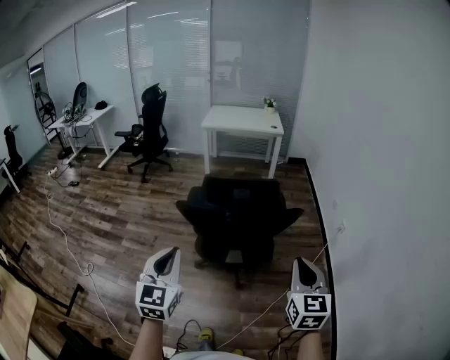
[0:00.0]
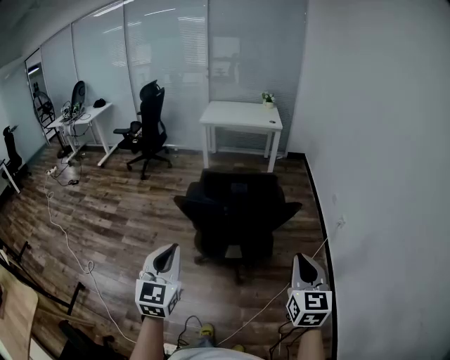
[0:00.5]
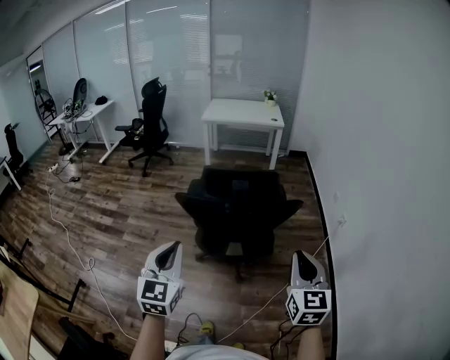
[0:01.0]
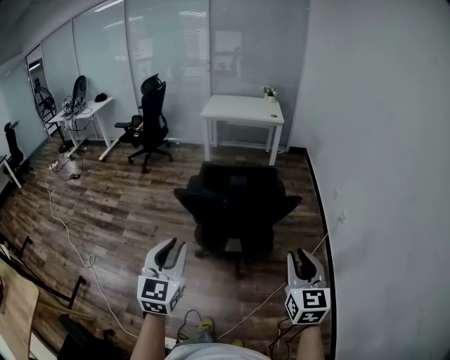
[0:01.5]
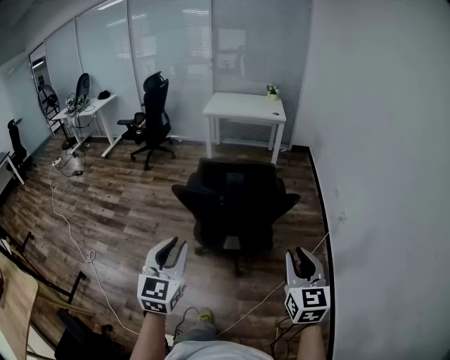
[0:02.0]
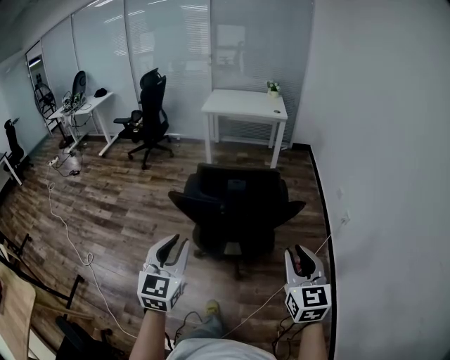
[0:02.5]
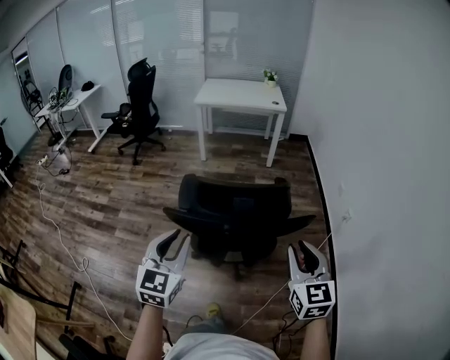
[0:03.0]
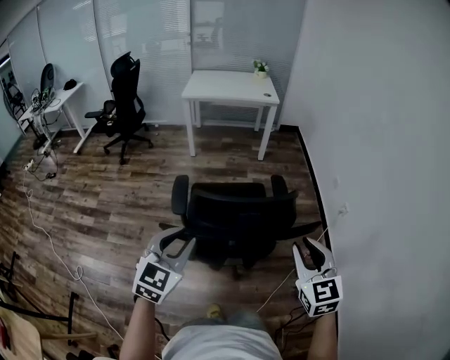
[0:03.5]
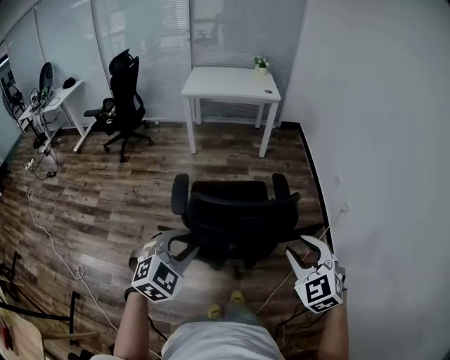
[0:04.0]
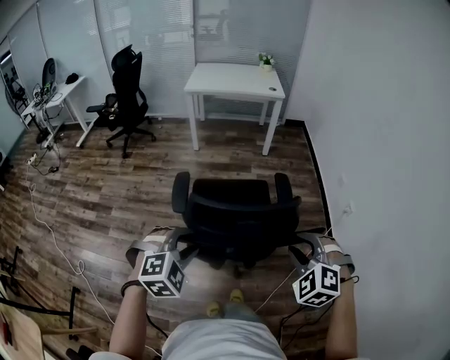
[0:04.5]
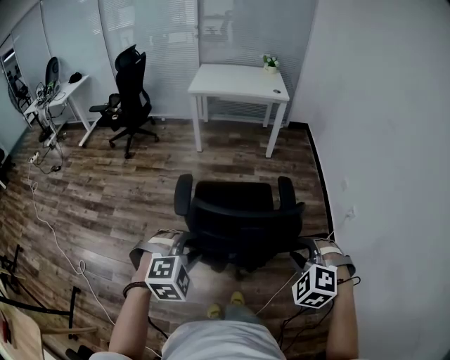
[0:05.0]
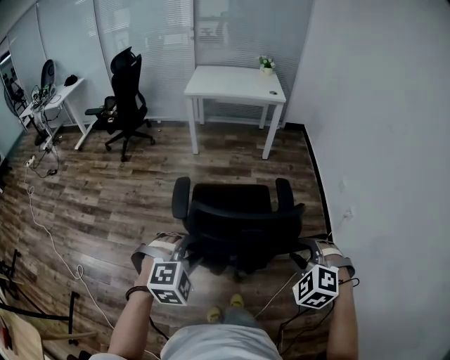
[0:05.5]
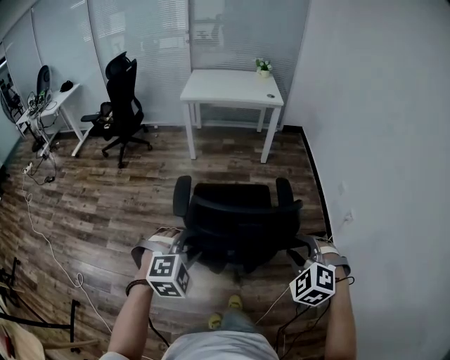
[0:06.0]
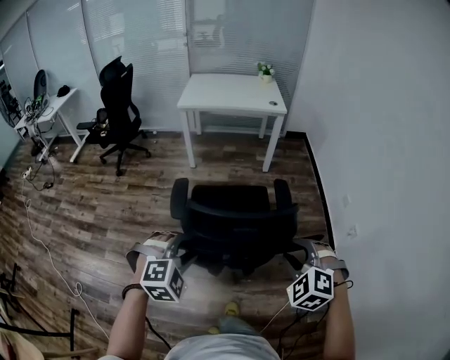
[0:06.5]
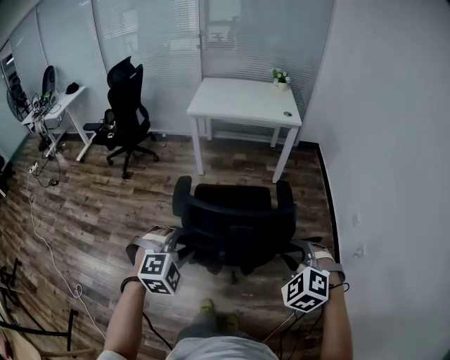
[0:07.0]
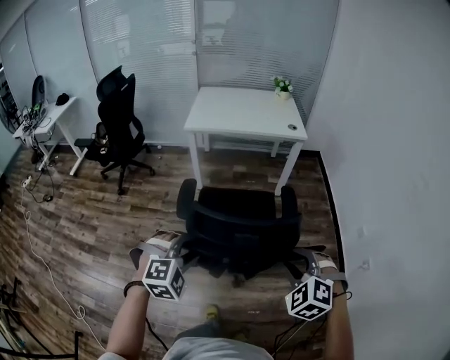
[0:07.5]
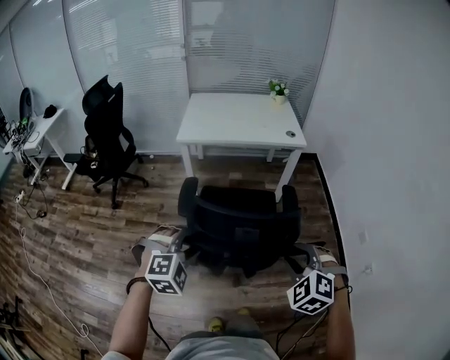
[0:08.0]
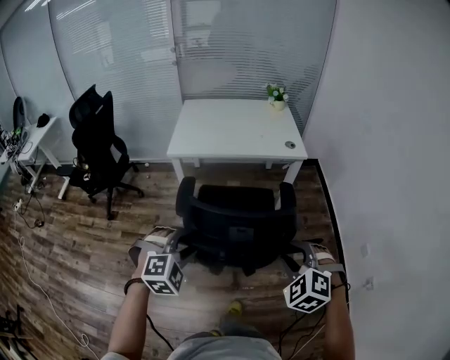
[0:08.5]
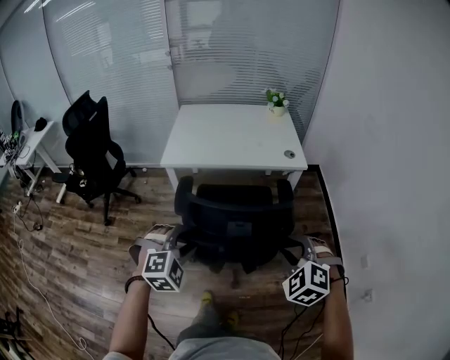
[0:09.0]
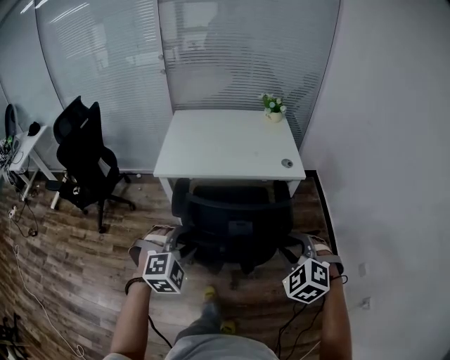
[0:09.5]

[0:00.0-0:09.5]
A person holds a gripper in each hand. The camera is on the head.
0.0 to 2.0 s: The left gripper moves to the right, approximately 5 cm, and opens.
2.0 to 4.0 s: The grippers both shift forward by approximately 30 cm. The left gripper rotates some 50 degrees; the right gripper turns by roughly 40 degrees.
4.0 to 5.5 s: The right gripper shifts by approximately 5 cm, and swivels approximately 30 degrees. The left gripper moves about 5 cm, and swivels approximately 20 degrees.
5.5 to 7.5 s: Both grippers are carried forward, about 50 cm.
7.5 to 9.5 s: The pair of grippers is taken forward, roughly 50 cm.

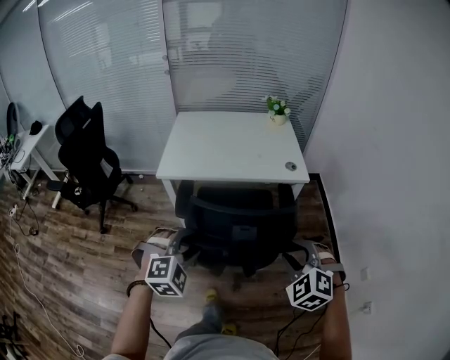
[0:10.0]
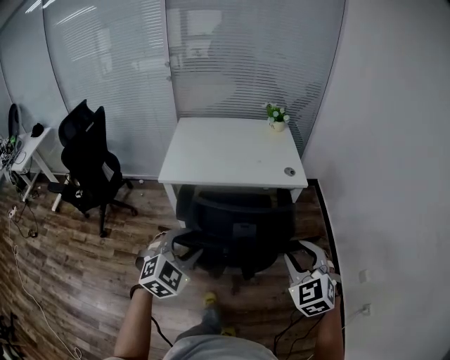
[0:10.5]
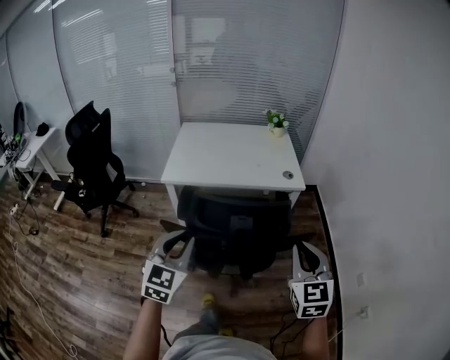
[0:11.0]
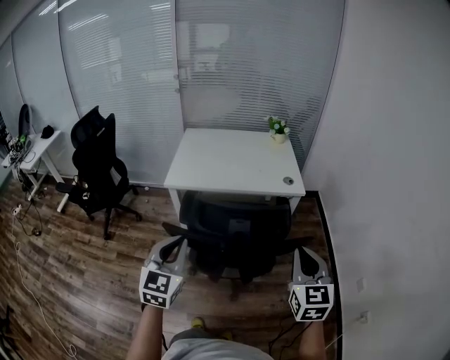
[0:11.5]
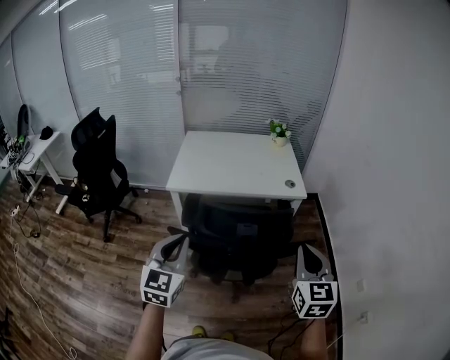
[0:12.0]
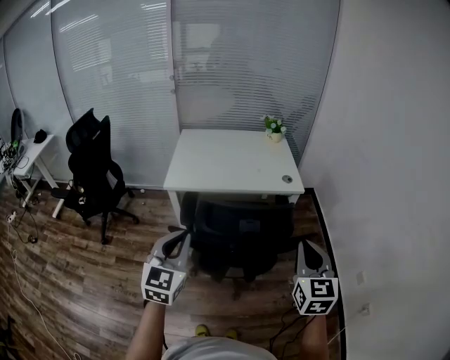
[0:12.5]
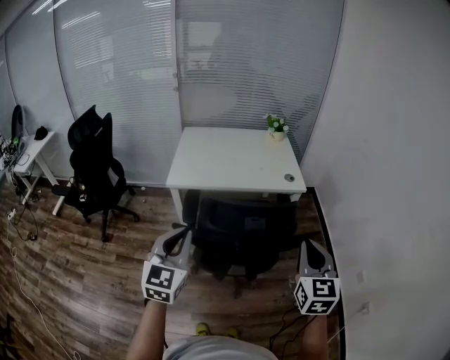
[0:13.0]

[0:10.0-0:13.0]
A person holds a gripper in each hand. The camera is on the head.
10.0 to 11.5 s: The two grippers go approximately 10 cm upward and backward. The left gripper rotates around the line of its fingers by roughly 50 degrees, counterclockwise from behind, and closes its fingers; the right gripper twists approximately 50 degrees clockwise, seen from behind, and closes its fingers.
11.5 to 13.0 s: The left gripper moves approximately 5 cm.

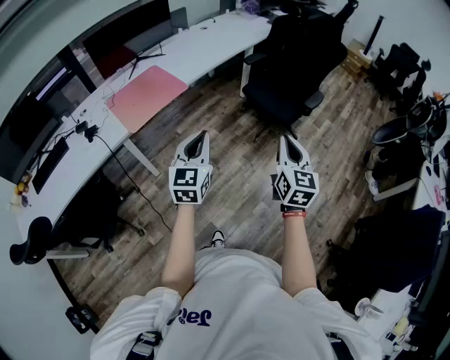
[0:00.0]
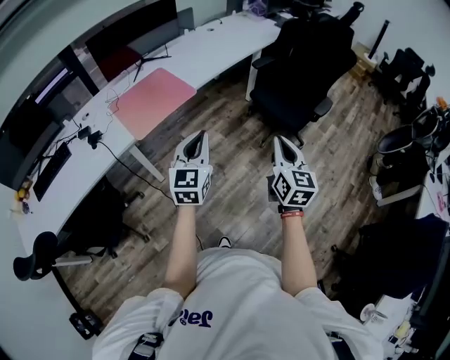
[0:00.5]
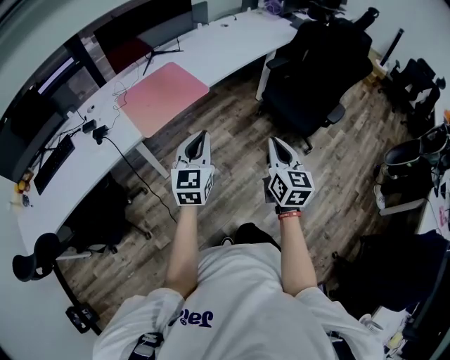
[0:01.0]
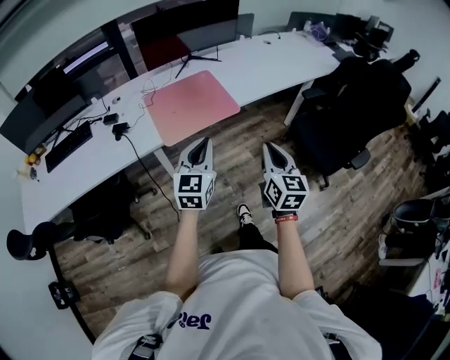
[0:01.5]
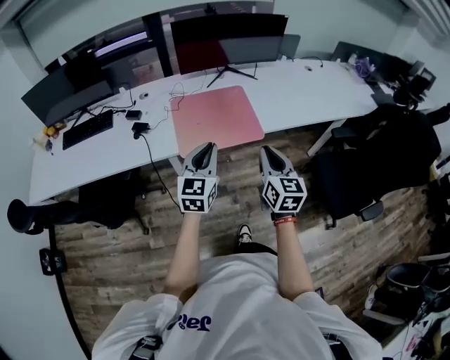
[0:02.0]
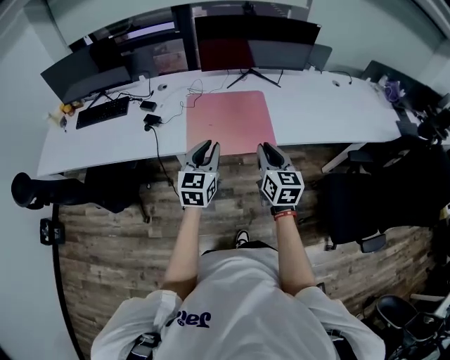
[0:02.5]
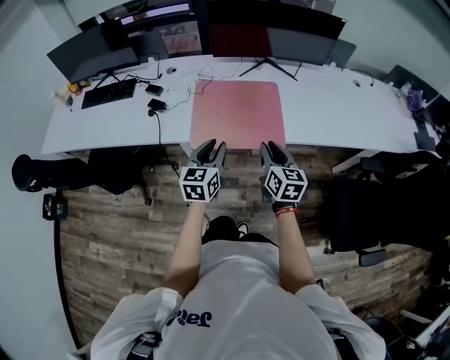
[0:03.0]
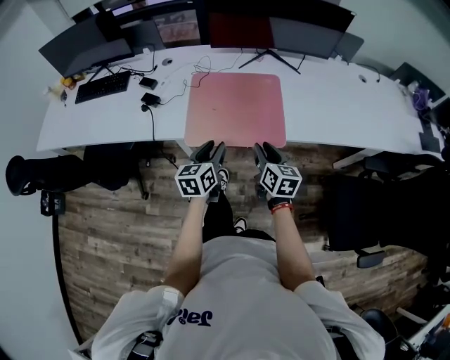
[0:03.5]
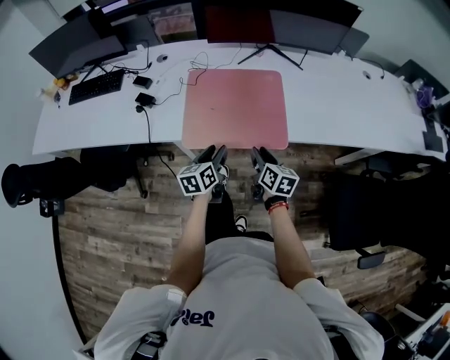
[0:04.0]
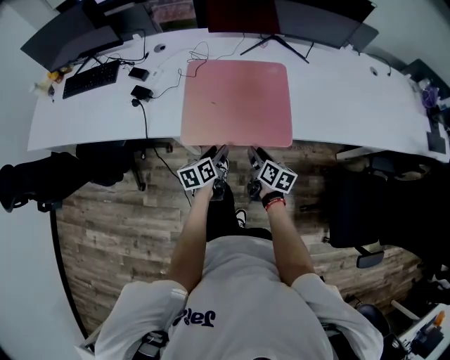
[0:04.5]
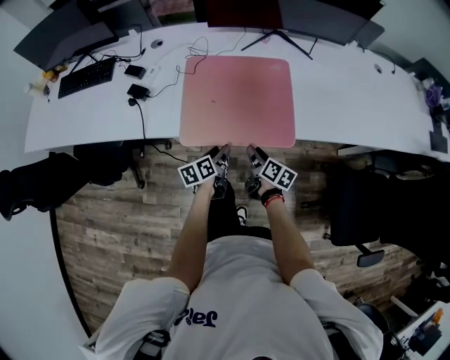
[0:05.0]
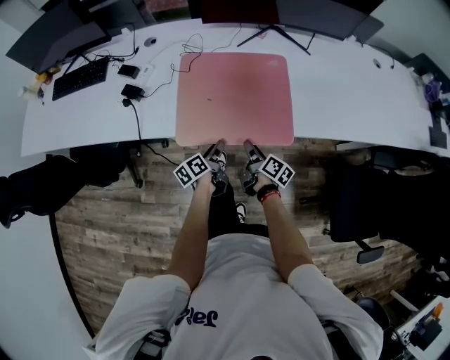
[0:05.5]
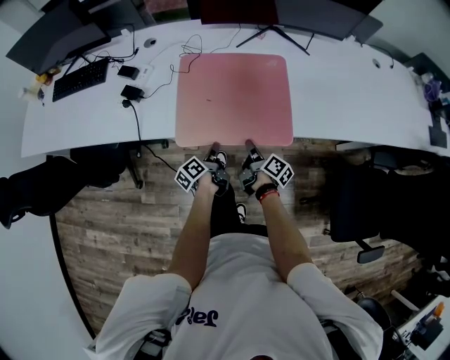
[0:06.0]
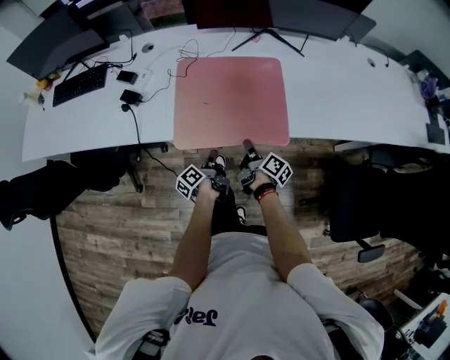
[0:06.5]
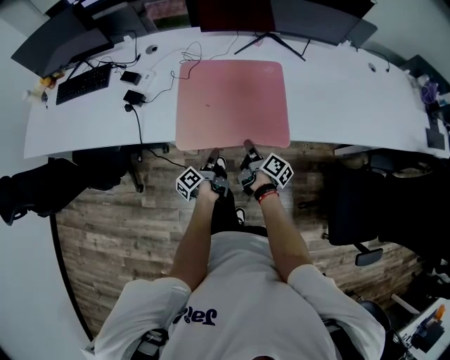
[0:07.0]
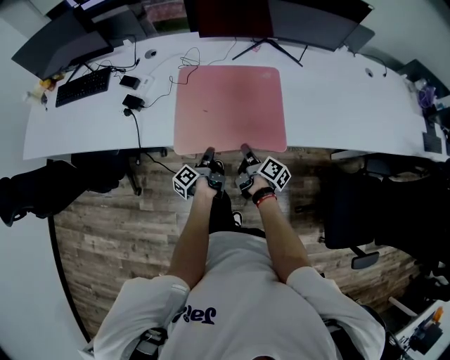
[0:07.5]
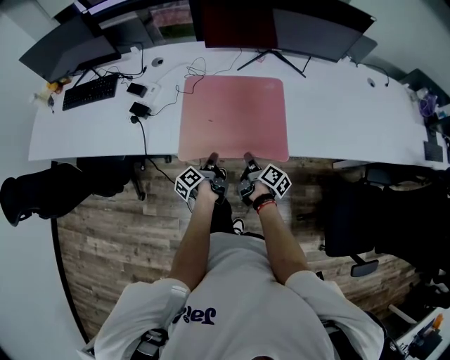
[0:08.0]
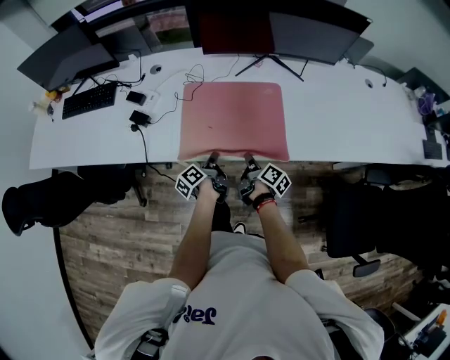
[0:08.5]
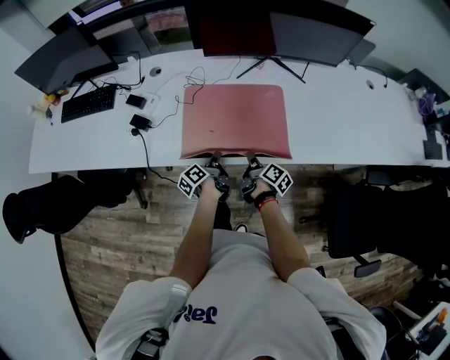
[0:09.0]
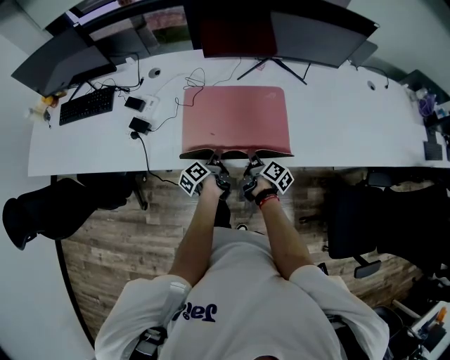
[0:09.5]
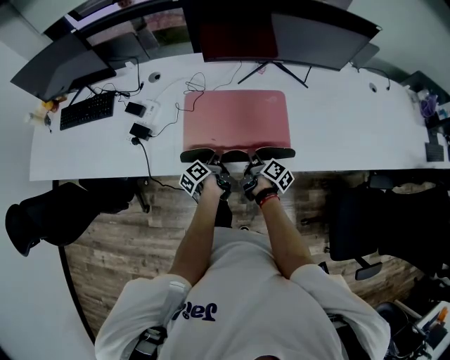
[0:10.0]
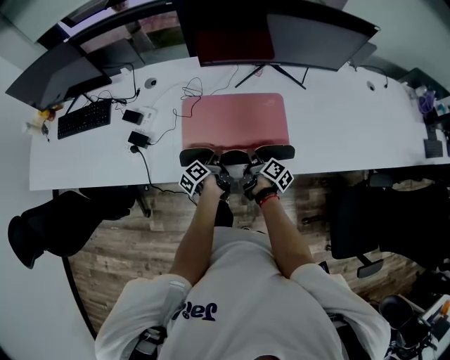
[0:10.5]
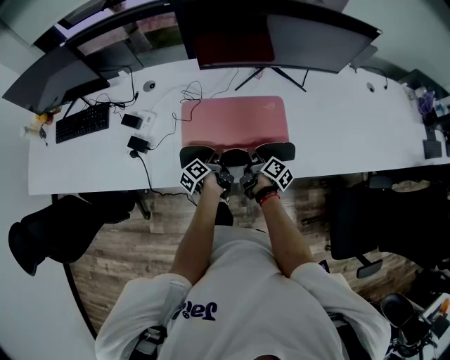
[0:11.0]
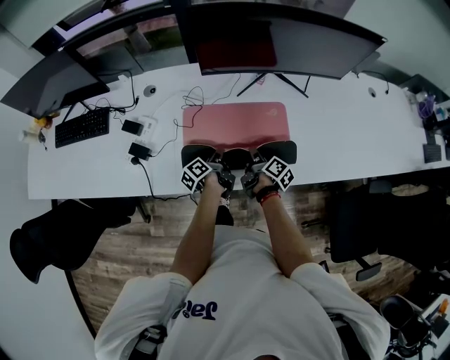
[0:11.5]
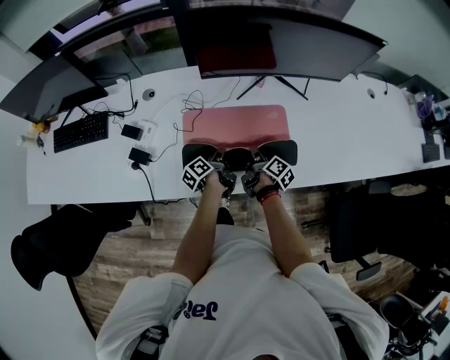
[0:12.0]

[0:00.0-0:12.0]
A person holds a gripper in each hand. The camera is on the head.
0.0 to 2.0 s: The left gripper shifts by about 35 cm, and swivels roughly 30 degrees. The right gripper ends up some 50 cm from where it was, and rotates about 40 degrees.
2.0 to 4.0 s: Both grippers move downward and forward, approximately 30 cm. The right gripper turns by roughly 30 degrees, and opens up. Meanwhile the left gripper swivels some 40 degrees, and opens.
4.0 to 6.0 s: The right gripper heads downward and forward, covering approximately 15 cm, and twists about 40 degrees clockwise, seen from behind, while the left gripper heads downward, covering roughly 15 cm, twists some 50 degrees counterclockwise, seen from behind, and closes its fingers.
6.0 to 8.0 s: The right gripper changes place by some 5 cm, while the left gripper travels upward by roughly 5 cm.
8.0 to 10.0 s: The two grippers go roughly 10 cm forward.
10.0 to 12.0 s: Both grippers move forward, about 10 cm.

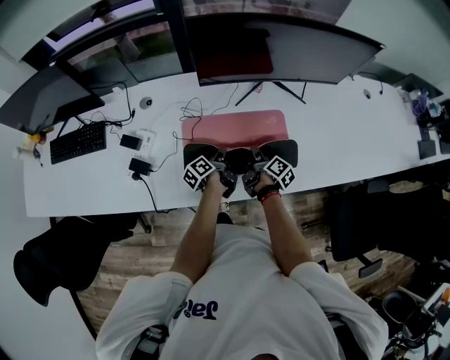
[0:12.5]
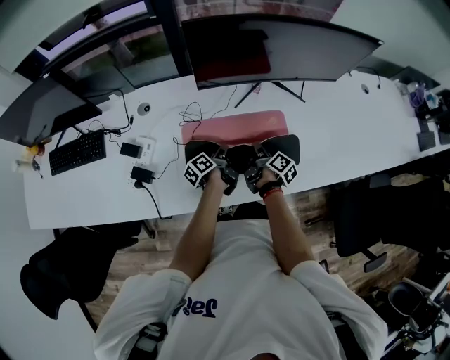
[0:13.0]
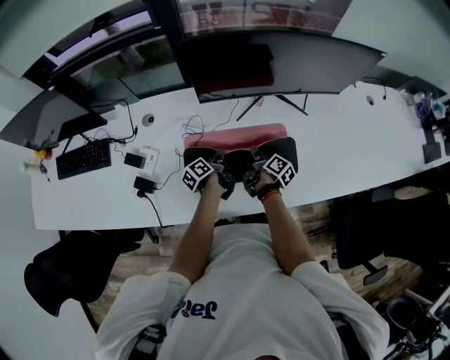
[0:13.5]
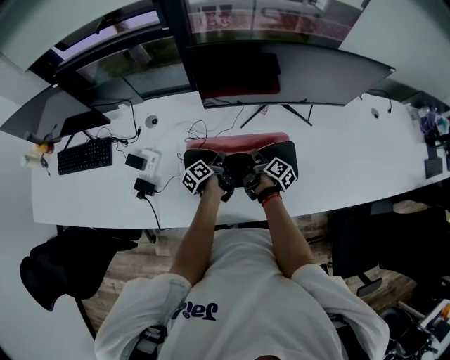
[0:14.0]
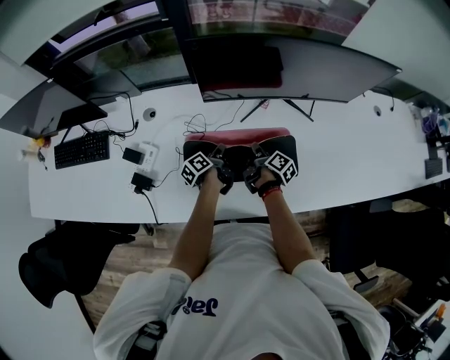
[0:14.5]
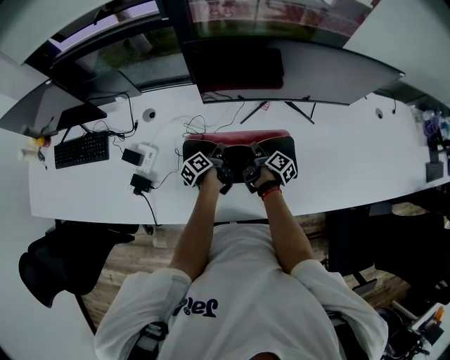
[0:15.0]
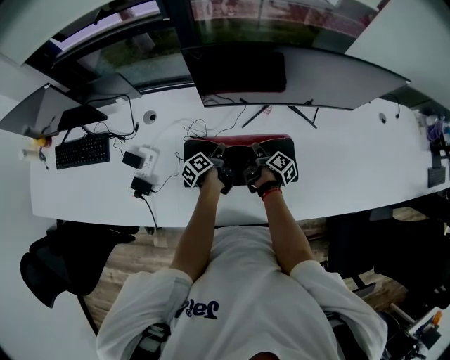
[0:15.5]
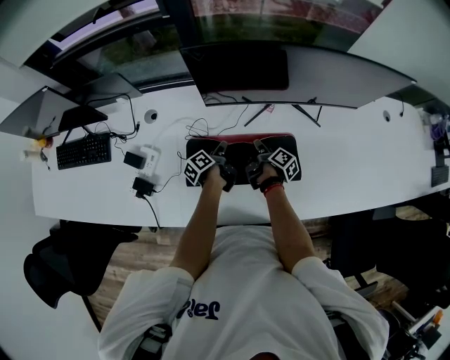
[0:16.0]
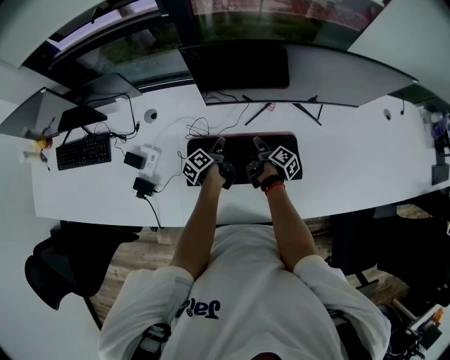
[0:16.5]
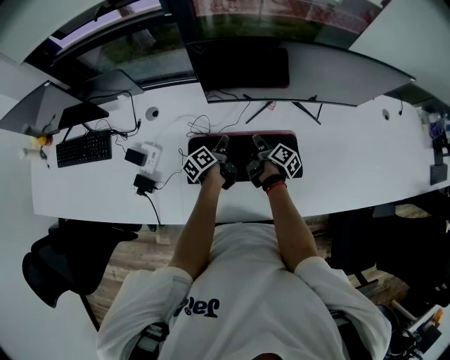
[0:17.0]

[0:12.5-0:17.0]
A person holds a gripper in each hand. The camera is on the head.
12.5 to 14.5 s: The grippers both shift forward by approximately 10 cm.
14.5 to 17.0 s: The grippers make only small movements.
